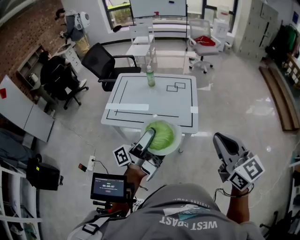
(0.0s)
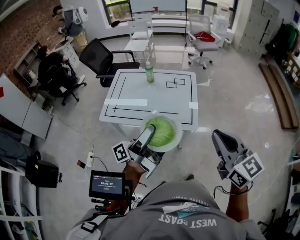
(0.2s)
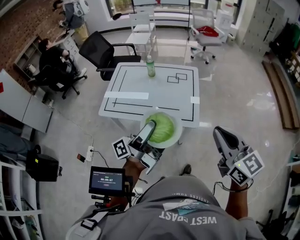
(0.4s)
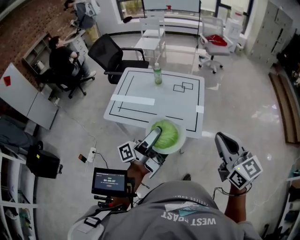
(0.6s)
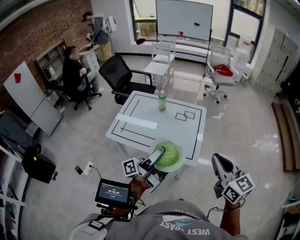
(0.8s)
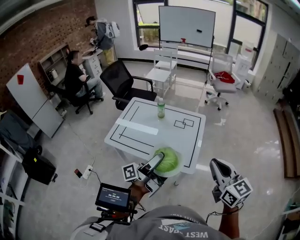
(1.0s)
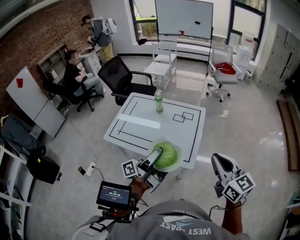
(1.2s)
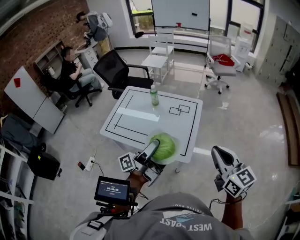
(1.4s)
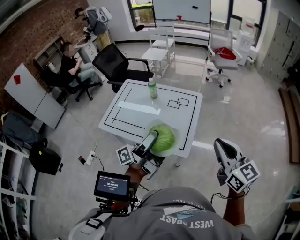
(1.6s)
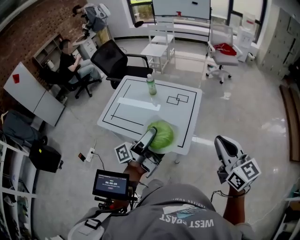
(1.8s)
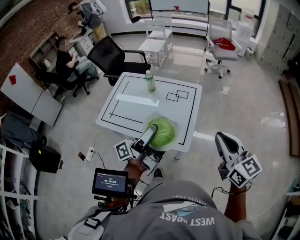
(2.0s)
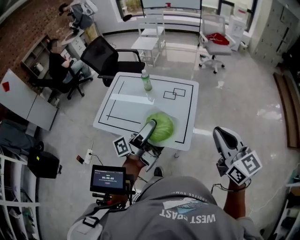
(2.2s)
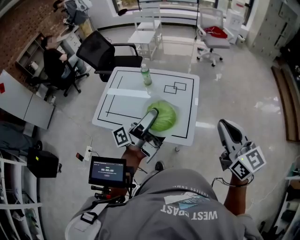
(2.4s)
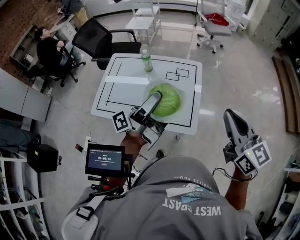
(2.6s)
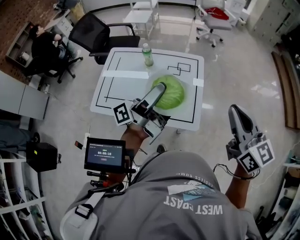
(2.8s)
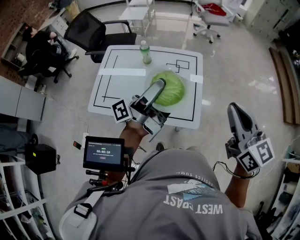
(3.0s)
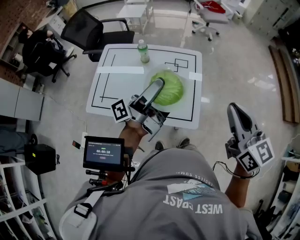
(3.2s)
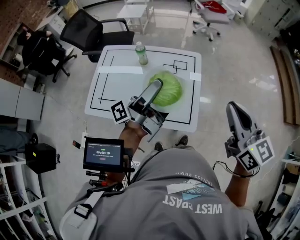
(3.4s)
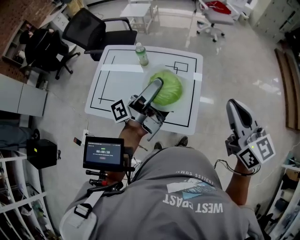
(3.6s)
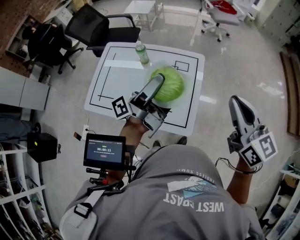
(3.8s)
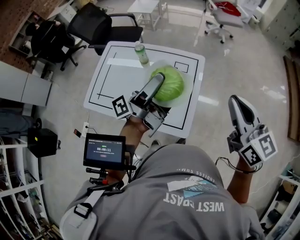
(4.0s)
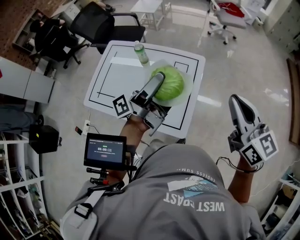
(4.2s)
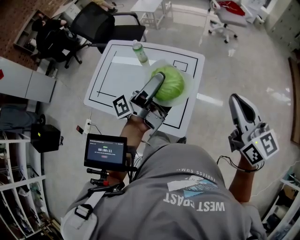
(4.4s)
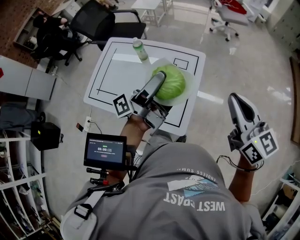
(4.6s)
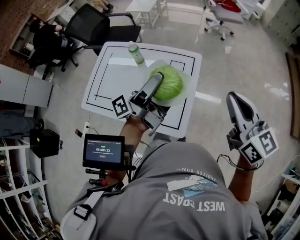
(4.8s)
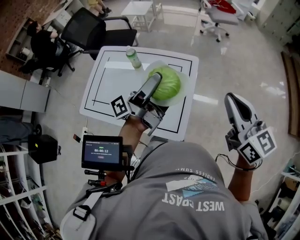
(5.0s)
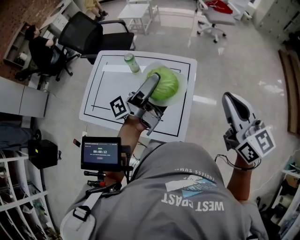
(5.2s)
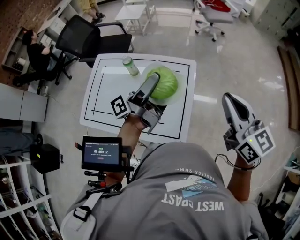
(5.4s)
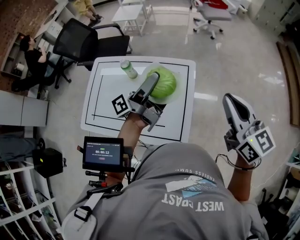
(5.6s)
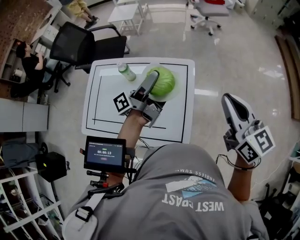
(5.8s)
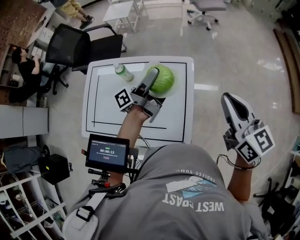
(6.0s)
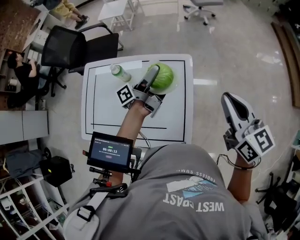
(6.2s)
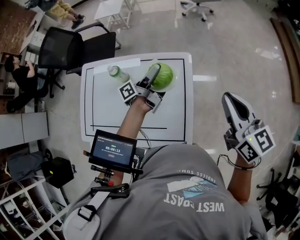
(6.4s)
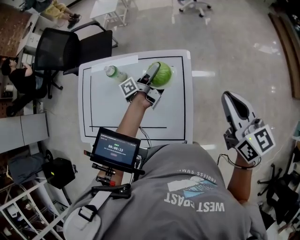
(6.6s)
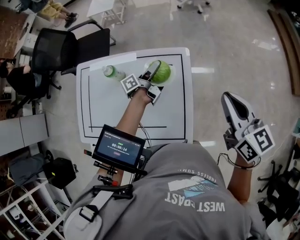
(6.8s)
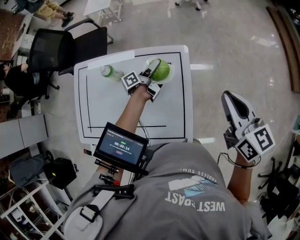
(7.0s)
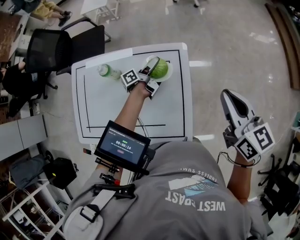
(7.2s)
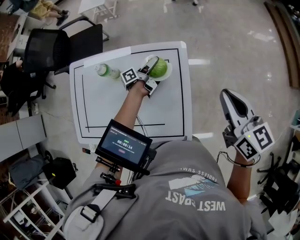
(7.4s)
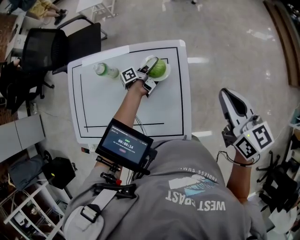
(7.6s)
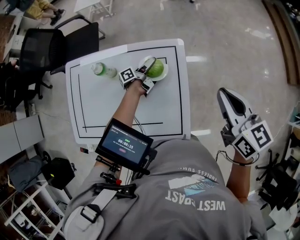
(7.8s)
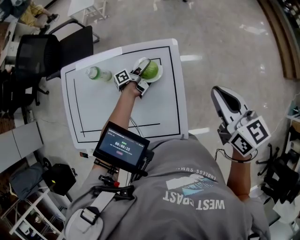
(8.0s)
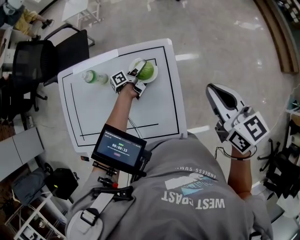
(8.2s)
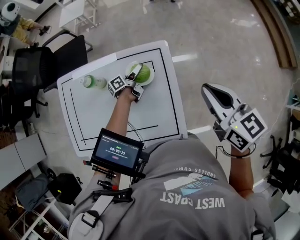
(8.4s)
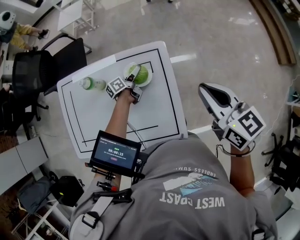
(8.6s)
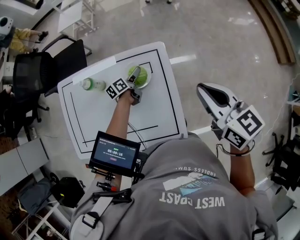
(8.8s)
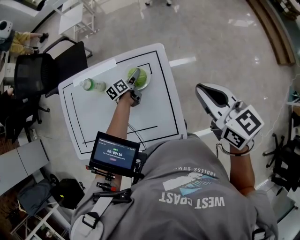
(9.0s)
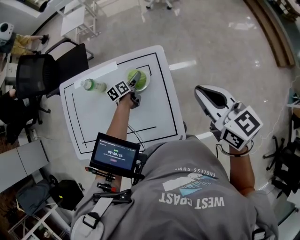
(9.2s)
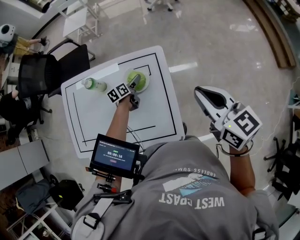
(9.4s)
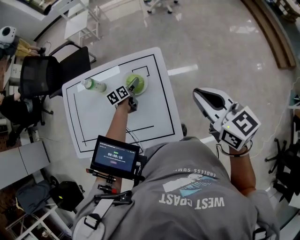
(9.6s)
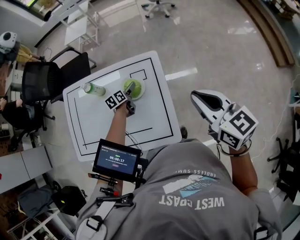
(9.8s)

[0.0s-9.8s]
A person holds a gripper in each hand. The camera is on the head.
0.0s to 1.4s: The right gripper moves about 20 cm.
1.4s to 2.8s: The right gripper ends up about 10 cm from where it was.
2.8s to 4.2s: The right gripper moves about 15 cm.
5.6s to 7.0s: The right gripper moves approximately 10 cm.
8.4s to 9.8s: The right gripper shifts by about 5 cm.

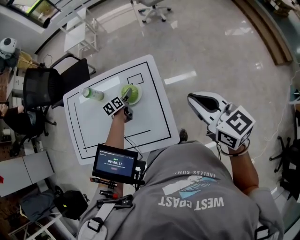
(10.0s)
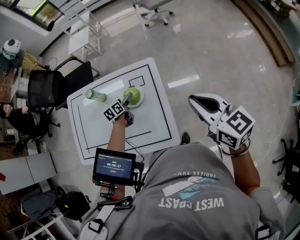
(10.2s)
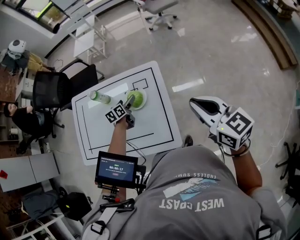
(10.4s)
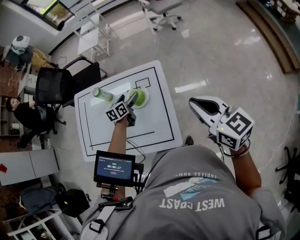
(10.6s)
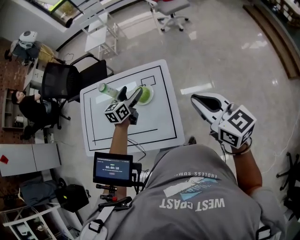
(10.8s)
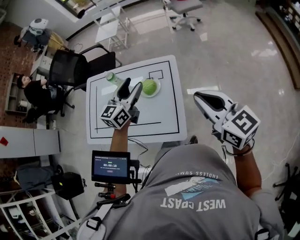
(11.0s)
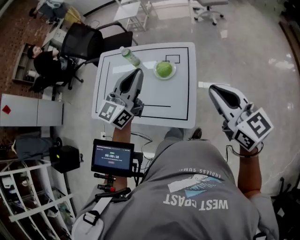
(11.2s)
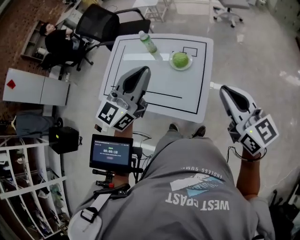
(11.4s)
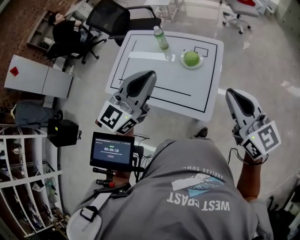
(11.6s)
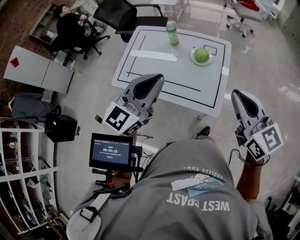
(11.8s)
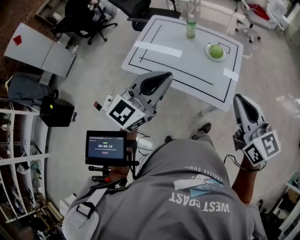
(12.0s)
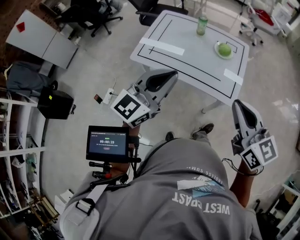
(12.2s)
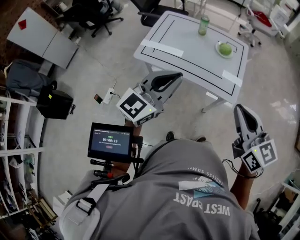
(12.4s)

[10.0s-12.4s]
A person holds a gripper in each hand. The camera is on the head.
10.0s to 11.2s: The right gripper changes place by approximately 10 cm.
11.2s to 12.4s: The right gripper moves about 35 cm.

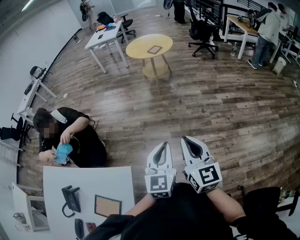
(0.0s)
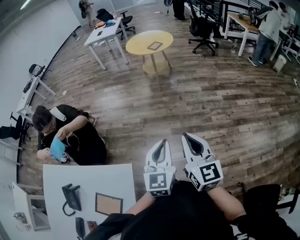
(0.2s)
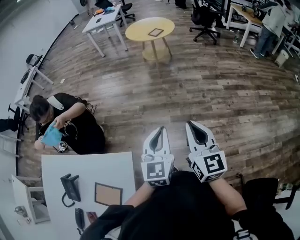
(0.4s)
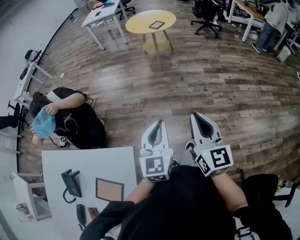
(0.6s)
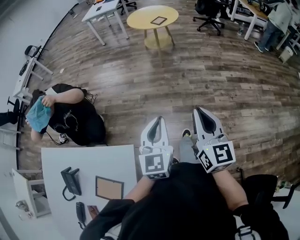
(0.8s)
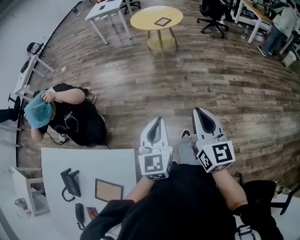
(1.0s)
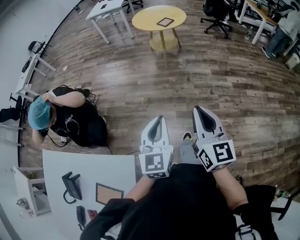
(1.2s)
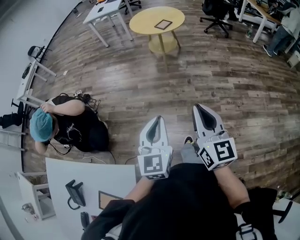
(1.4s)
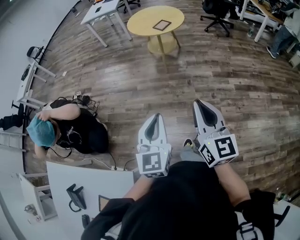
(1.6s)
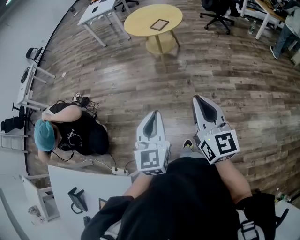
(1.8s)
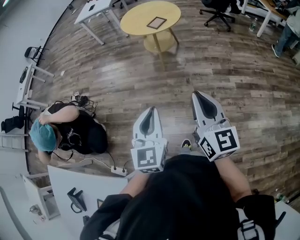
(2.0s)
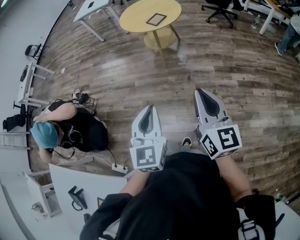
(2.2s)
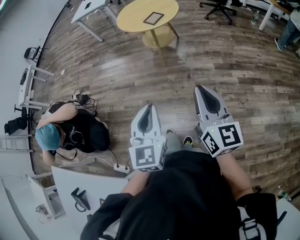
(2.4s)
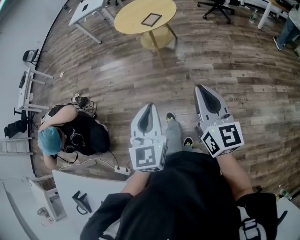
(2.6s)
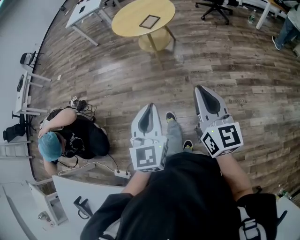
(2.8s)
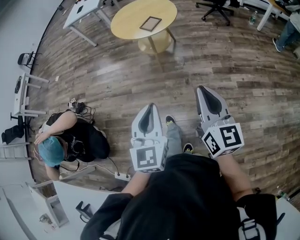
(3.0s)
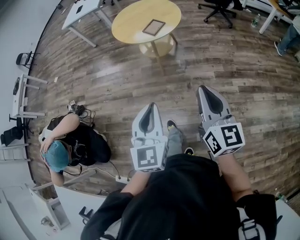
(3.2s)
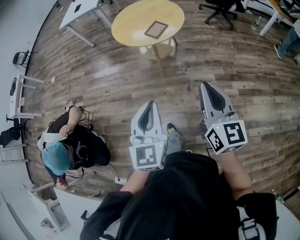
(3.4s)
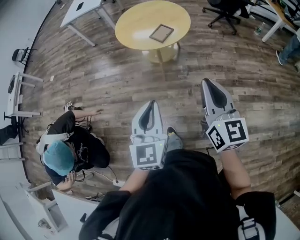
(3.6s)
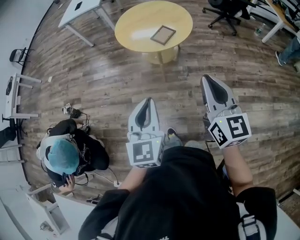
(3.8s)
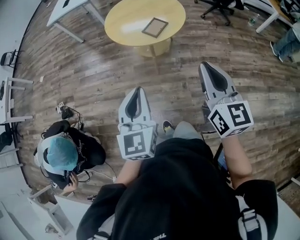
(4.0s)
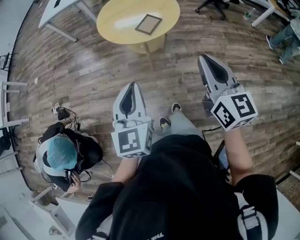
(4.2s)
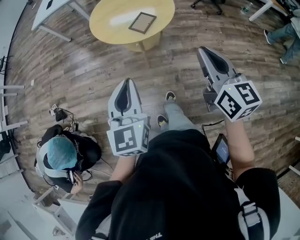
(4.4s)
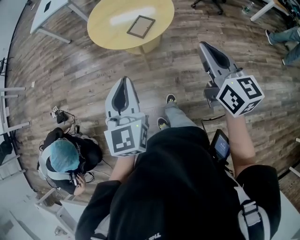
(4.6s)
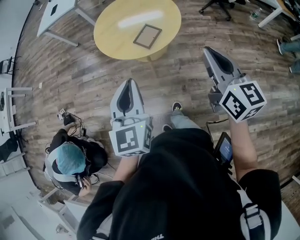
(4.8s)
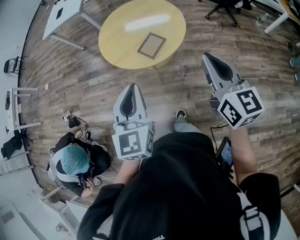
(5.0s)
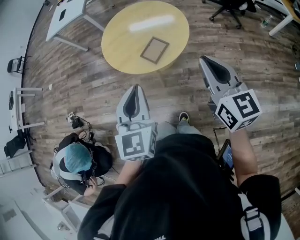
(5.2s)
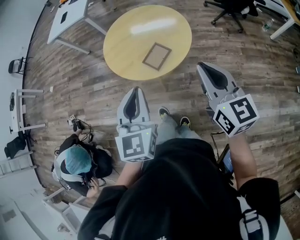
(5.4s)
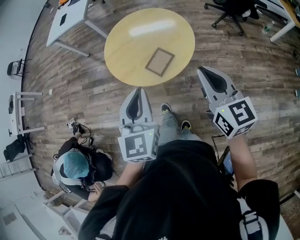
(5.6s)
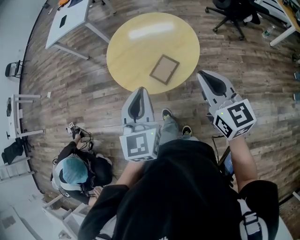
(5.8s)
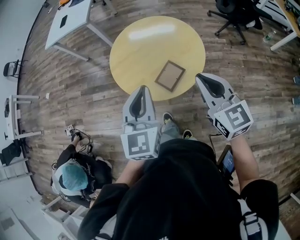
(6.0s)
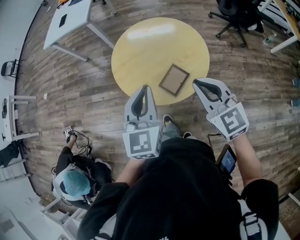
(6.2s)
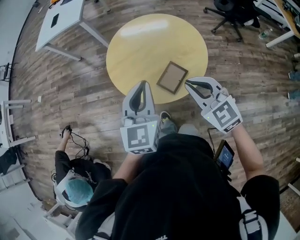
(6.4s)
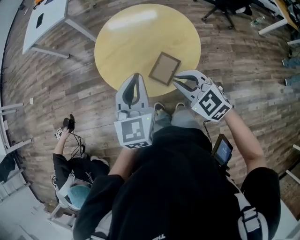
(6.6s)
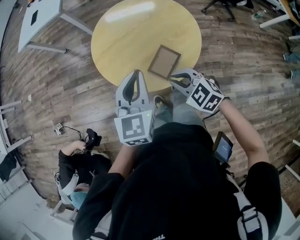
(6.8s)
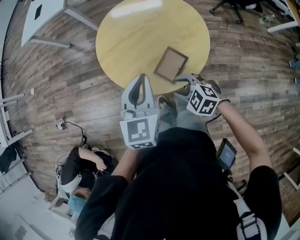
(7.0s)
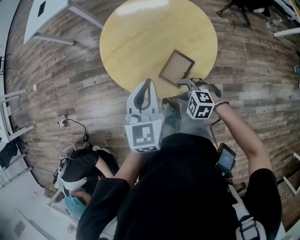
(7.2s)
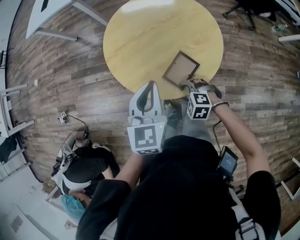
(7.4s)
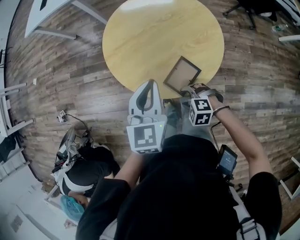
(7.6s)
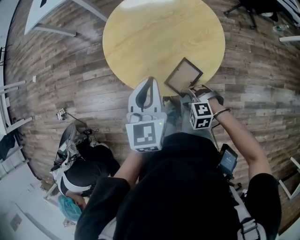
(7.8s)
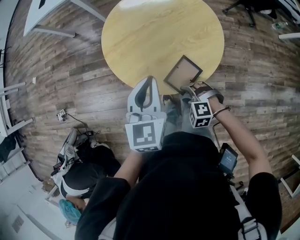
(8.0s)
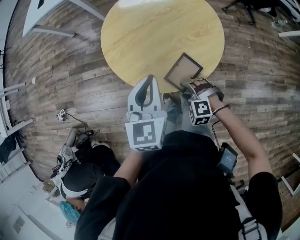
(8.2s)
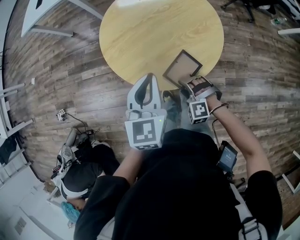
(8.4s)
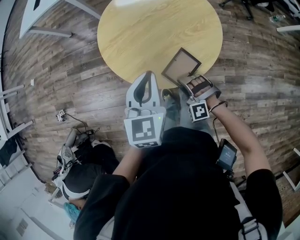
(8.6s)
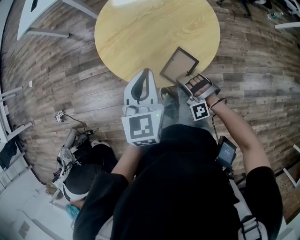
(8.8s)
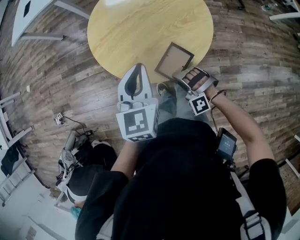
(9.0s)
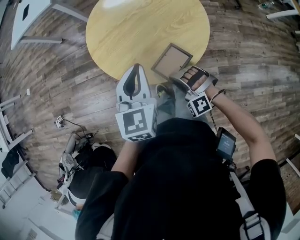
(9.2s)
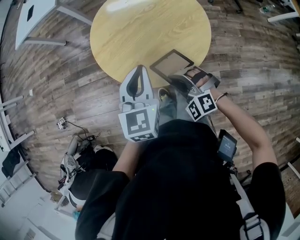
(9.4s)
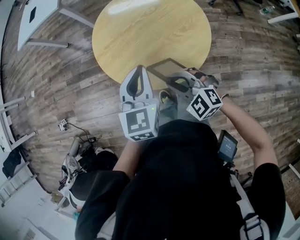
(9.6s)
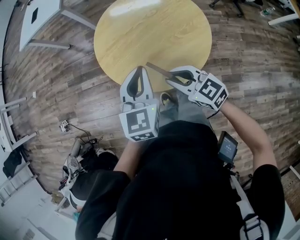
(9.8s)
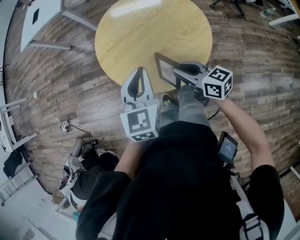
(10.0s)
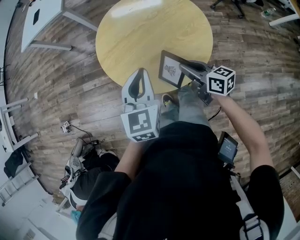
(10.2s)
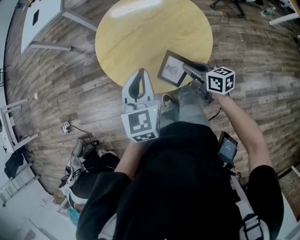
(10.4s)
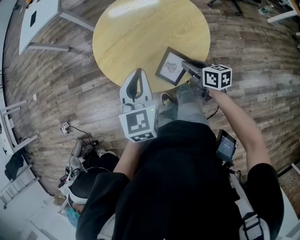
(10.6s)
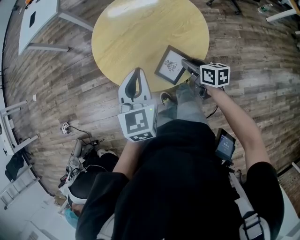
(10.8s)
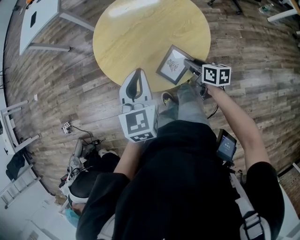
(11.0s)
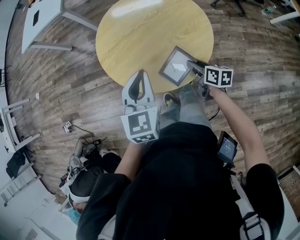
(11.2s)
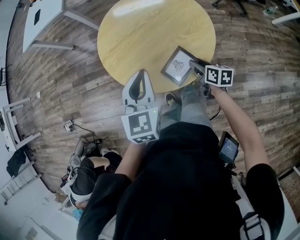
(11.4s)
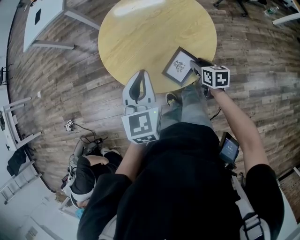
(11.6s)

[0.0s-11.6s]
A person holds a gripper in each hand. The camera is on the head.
0.0s to 1.4s: Both grippers travel together forward, roughly 20 cm.
1.4s to 2.8s: Both grippers travel together forward and to the right, approximately 30 cm.
2.8s to 4.4s: The pair of grippers is taken forward, some 40 cm.
4.4s to 5.8s: Both grippers move forward, some 25 cm.
5.8s to 7.2s: The left gripper is displaced forward and downward by roughly 20 cm. Meanwhile the right gripper goes approximately 35 cm downward and to the left, angles its fingers downward, by about 50 degrees, and opens up.
7.2s to 8.8s: The right gripper goes about 5 cm downward, and rotates approximately 50 degrees.
8.8s to 10.2s: The right gripper shifts some 20 cm upward, forward and to the right, twists some 110 degrees clockwise, seen from behind, and closes.
10.2s to 11.6s: The right gripper heads downward and to the right, covering roughly 15 cm, changes its angle by approximately 30 degrees, and opens up.
